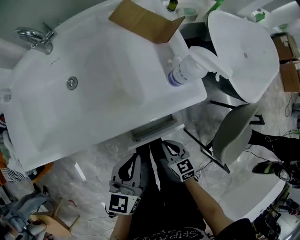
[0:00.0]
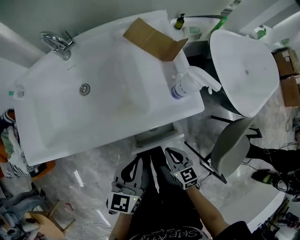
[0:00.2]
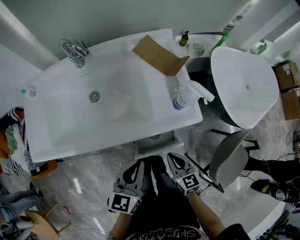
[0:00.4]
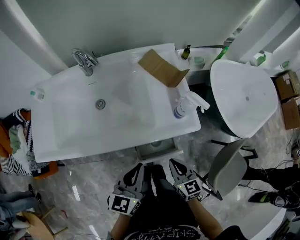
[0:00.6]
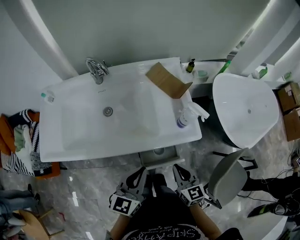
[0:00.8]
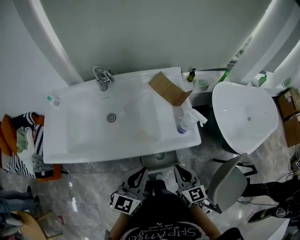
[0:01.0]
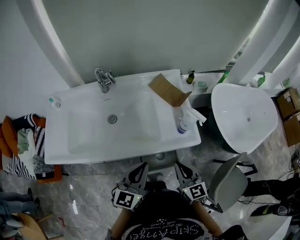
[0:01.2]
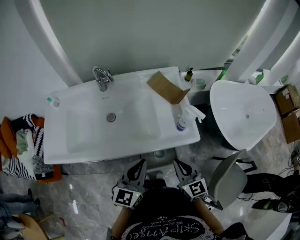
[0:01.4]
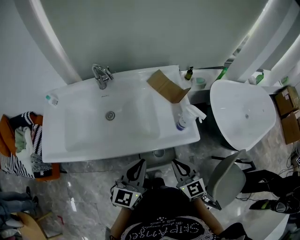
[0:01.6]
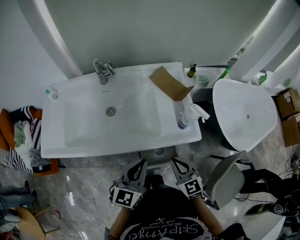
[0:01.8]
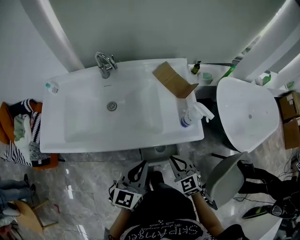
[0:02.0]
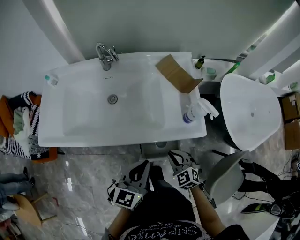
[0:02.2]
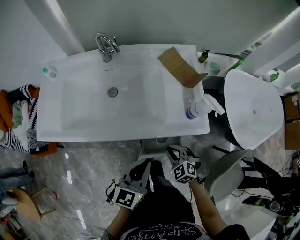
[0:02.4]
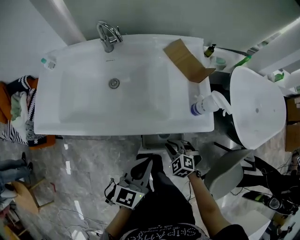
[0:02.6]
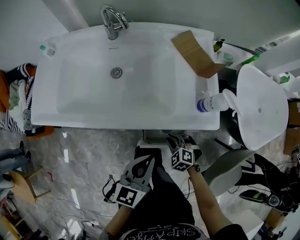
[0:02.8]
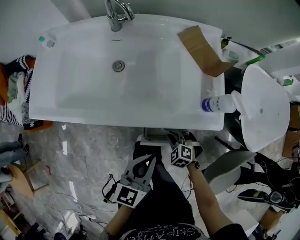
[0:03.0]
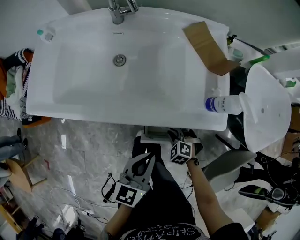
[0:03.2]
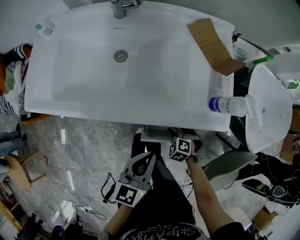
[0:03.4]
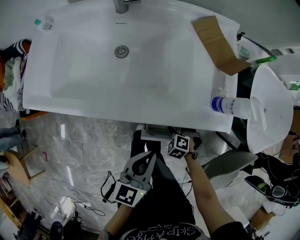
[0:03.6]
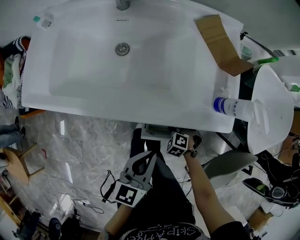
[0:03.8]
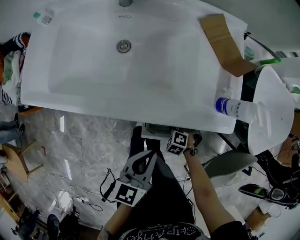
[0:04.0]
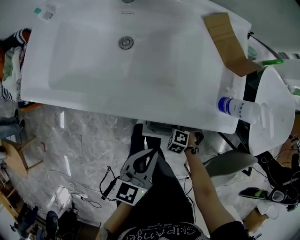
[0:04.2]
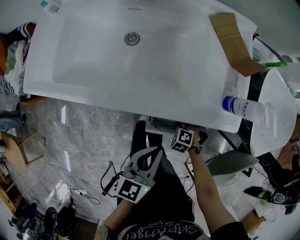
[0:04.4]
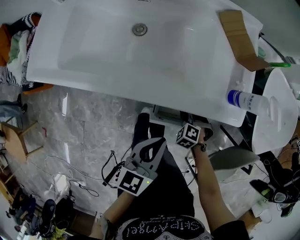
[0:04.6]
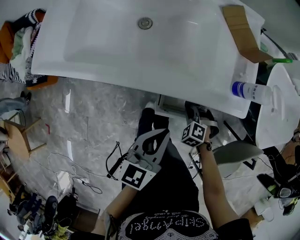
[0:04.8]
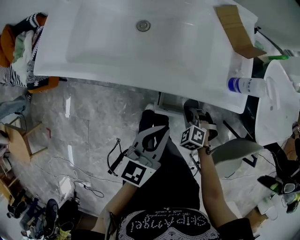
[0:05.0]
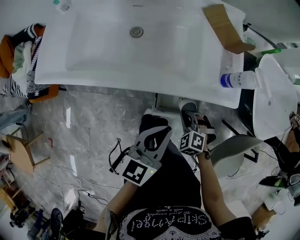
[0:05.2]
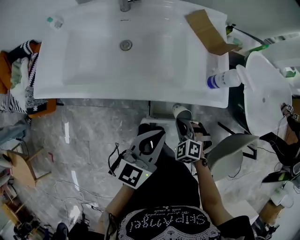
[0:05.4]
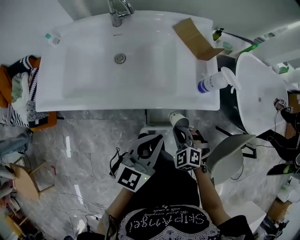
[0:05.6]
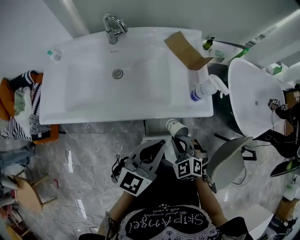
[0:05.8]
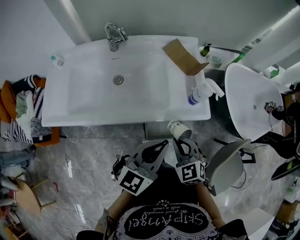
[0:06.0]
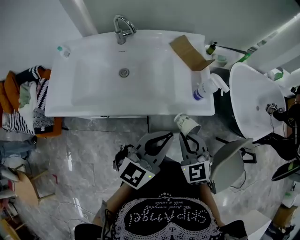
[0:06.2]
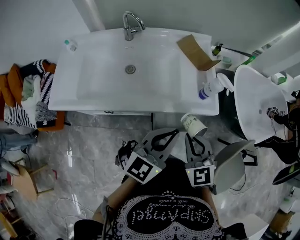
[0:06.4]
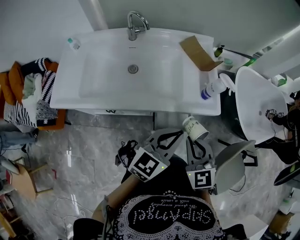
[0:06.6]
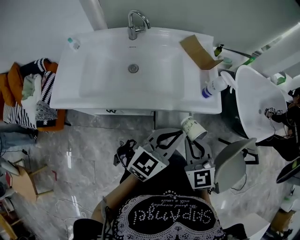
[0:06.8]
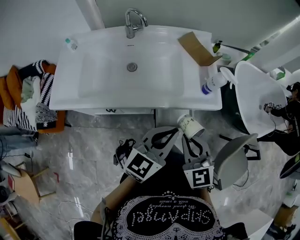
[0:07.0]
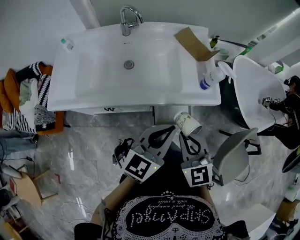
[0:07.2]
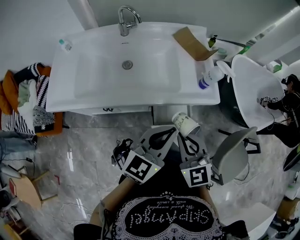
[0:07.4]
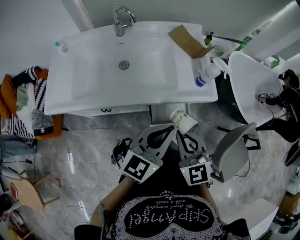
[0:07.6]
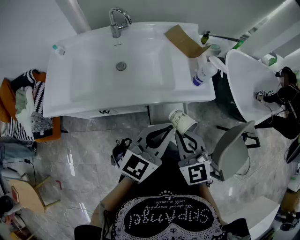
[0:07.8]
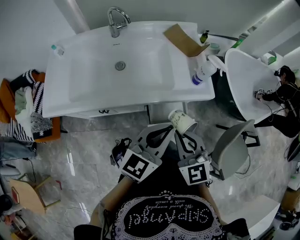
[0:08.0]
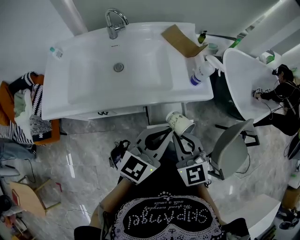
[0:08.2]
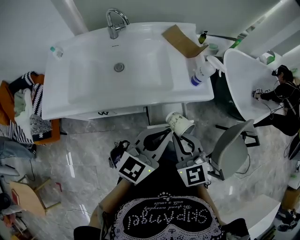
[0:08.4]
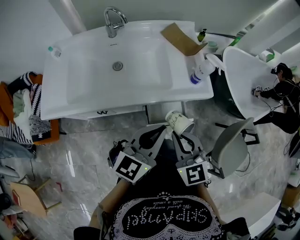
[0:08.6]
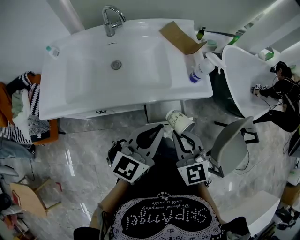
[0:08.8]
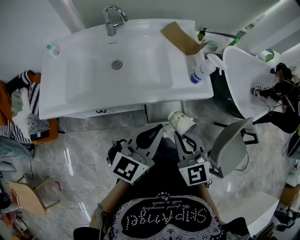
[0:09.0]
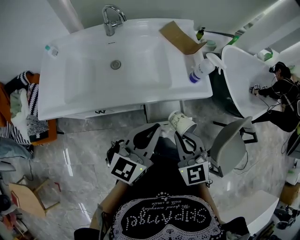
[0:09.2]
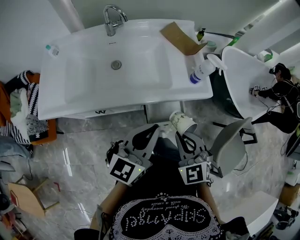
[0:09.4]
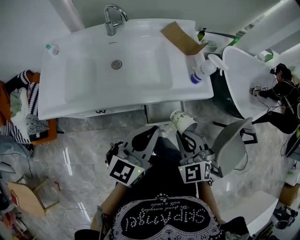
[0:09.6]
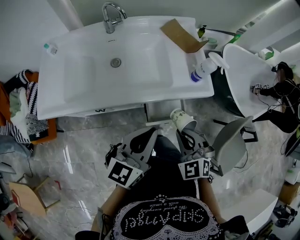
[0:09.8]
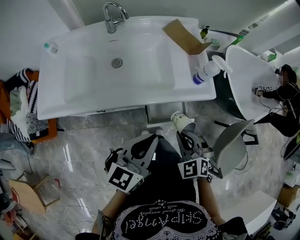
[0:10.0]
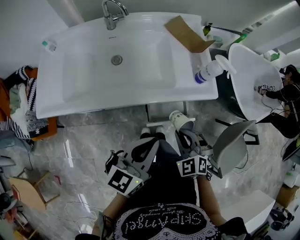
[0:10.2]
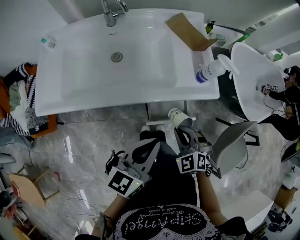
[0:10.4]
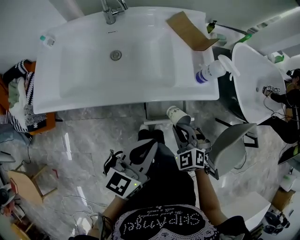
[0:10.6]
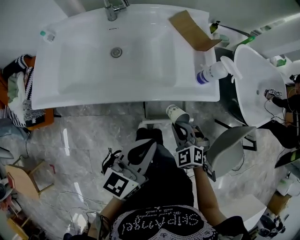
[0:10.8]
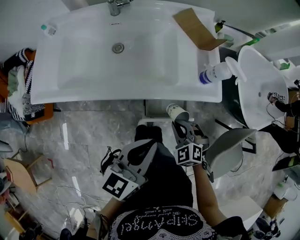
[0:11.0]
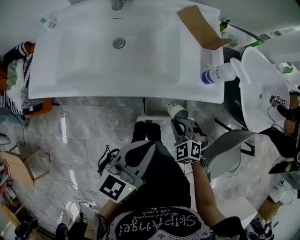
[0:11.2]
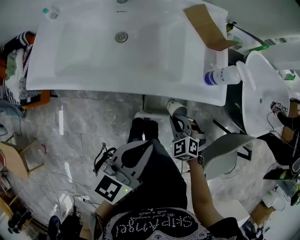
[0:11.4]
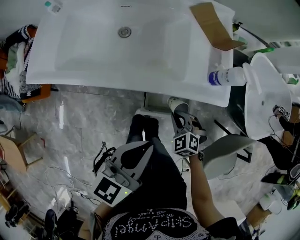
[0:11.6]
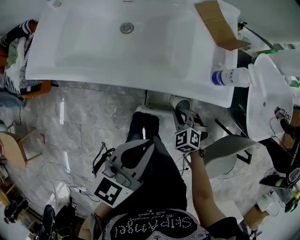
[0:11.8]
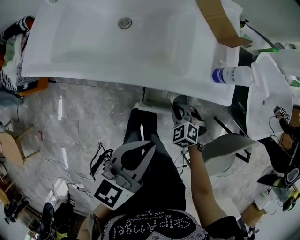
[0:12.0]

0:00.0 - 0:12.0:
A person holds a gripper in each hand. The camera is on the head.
0:00.0 - 0:01.6: The right gripper heads upward, covering some 25 cm, and rotates roughly 30 degrees; the left gripper travels upward by some 10 cm, and swivels about 20 degrees.
0:01.6 - 0:03.0: The left gripper travels downward by approximately 5 cm. The right gripper heads downward, covering roughly 25 cm, and tips its fingers downward by about 50 degrees.
0:03.0 - 0:04.4: The right gripper travels downward by about 10 cm.
0:04.4 - 0:06.0: The left gripper heads upward, covering about 15 cm, and rotates approximately 30 degrees. Meanwhile the right gripper travels upward by some 30 cm, and tilts its fingers some 40 degrees upward.
0:06.0 - 0:07.6: The right gripper travels upward and backward by roughly 10 cm.
0:07.6 - 0:09.0: There are only small adjustments of the grippers.
0:09.0 - 0:10.4: The right gripper heads downward, covering roughly 10 cm, and turns by approximately 30 degrees.
0:10.4 - 0:12.0: The right gripper is displaced downward by approximately 15 cm.

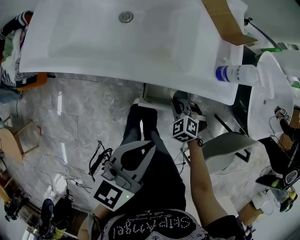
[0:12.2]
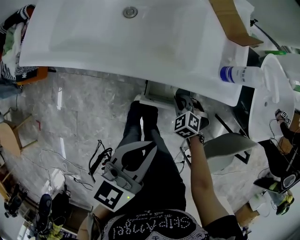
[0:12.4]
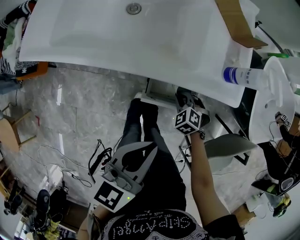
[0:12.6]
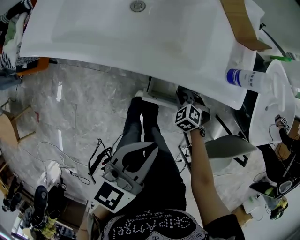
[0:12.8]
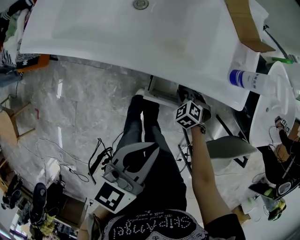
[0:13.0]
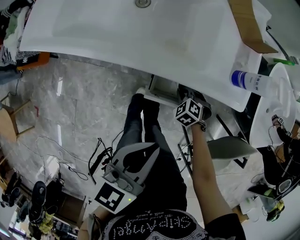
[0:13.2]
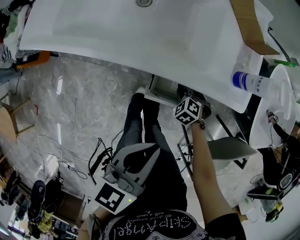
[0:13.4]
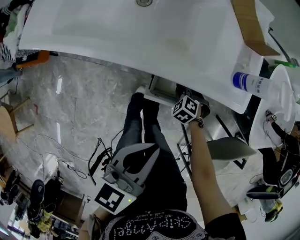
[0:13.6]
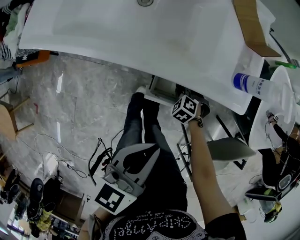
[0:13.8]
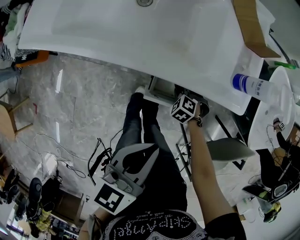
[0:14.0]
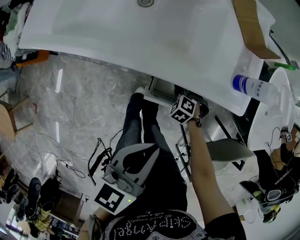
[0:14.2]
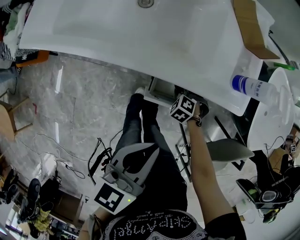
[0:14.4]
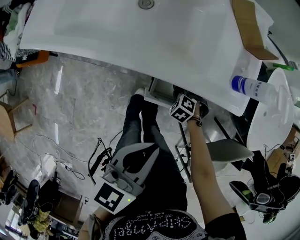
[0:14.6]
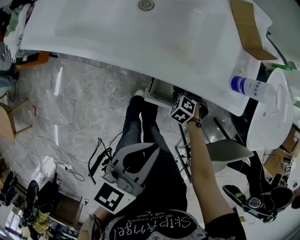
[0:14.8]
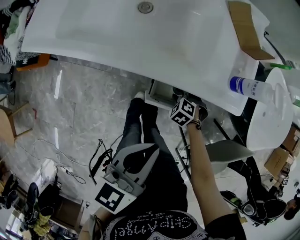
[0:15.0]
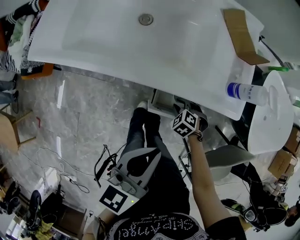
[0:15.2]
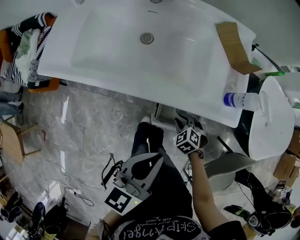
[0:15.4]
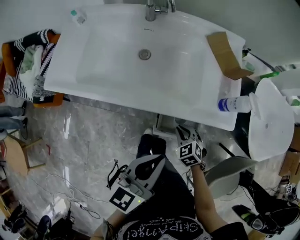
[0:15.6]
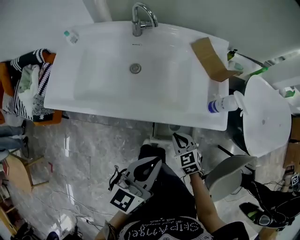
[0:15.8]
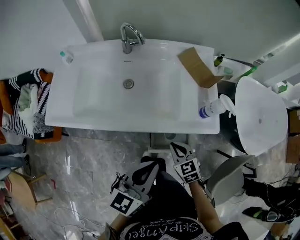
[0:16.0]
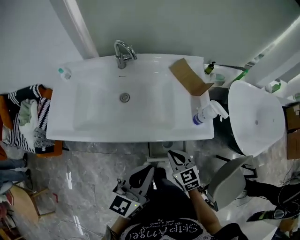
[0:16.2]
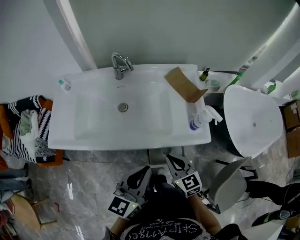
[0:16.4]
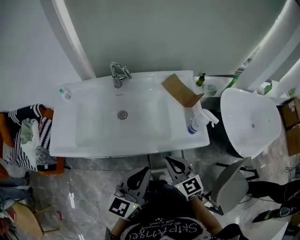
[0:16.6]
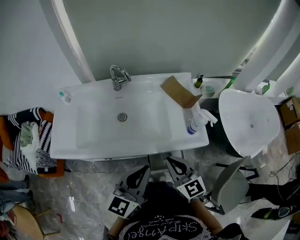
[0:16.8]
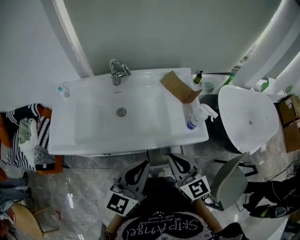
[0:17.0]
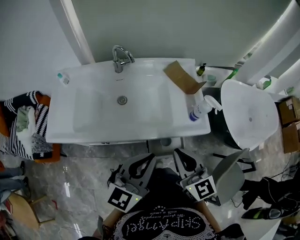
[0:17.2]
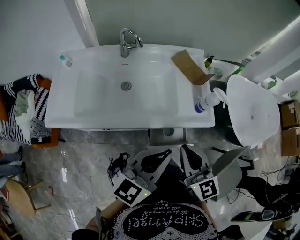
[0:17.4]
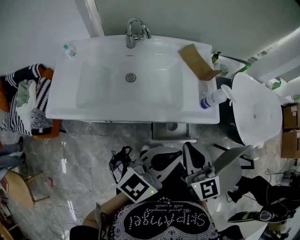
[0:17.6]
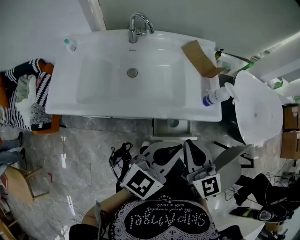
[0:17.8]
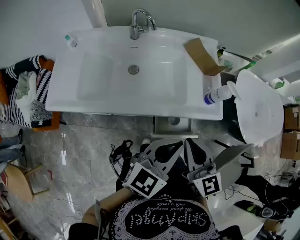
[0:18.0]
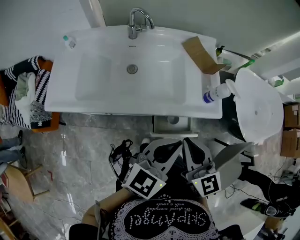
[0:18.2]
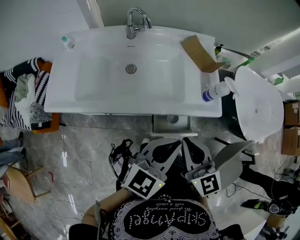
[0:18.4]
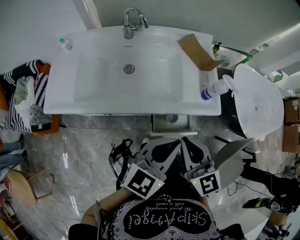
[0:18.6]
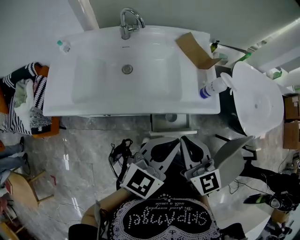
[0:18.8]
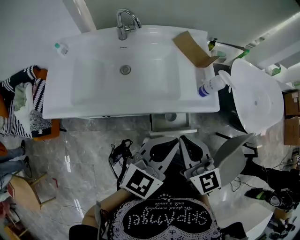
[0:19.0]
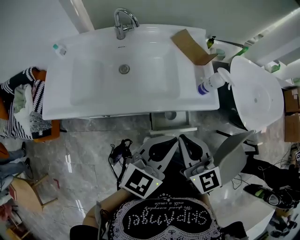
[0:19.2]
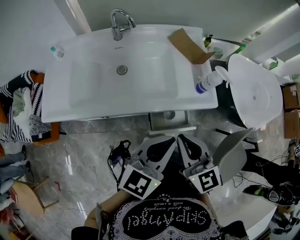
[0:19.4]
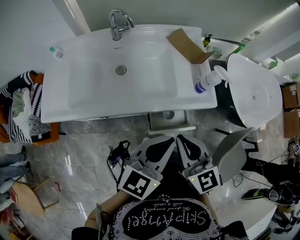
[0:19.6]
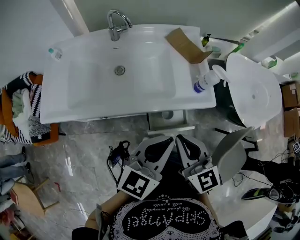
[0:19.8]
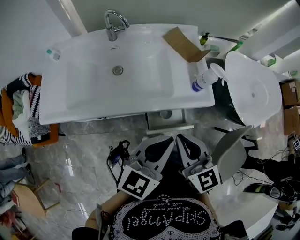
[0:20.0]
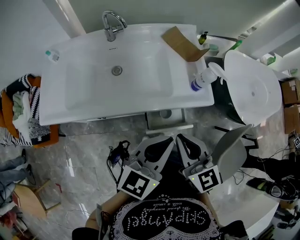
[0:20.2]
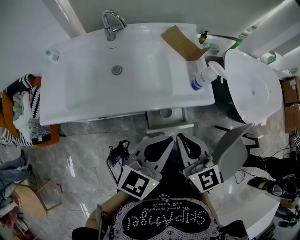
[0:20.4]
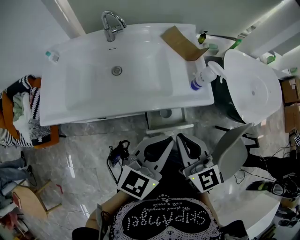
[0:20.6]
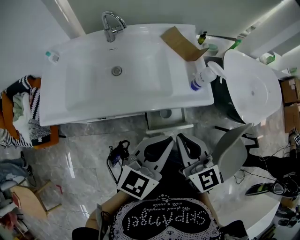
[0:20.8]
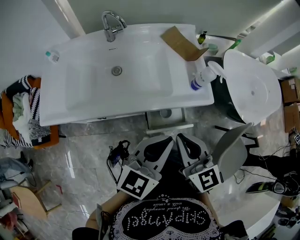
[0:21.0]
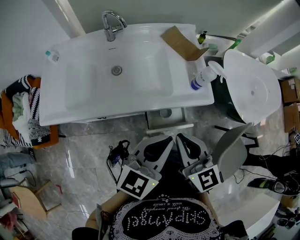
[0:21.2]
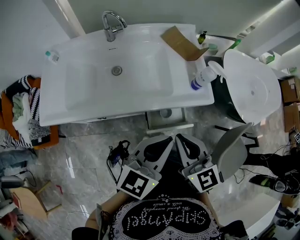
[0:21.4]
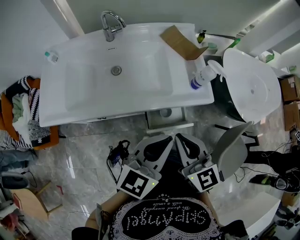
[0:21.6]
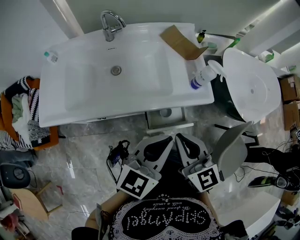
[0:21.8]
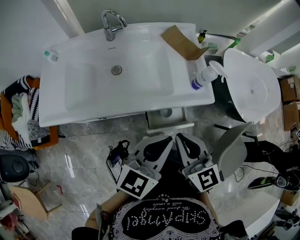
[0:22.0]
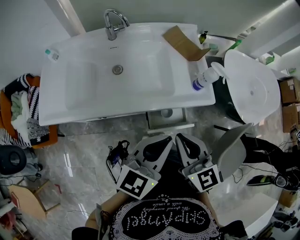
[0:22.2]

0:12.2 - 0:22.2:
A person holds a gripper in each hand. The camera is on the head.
0:12.2 - 0:13.6: The right gripper goes approximately 10 cm downward.
0:13.6 - 0:15.0: There are only small adjustments of the grippers.
0:15.0 - 0:16.4: The left gripper goes some 10 cm upward, and changes its angle by approximately 20 degrees. The right gripper shifts roughly 30 cm upward, and points its fingers about 50 degrees further upward.
0:16.4 - 0:18.0: The right gripper is displaced upward by about 10 cm. The left gripper changes its angle by approximately 20 degrees.
0:18.0 - 0:19.4: Both grippers stay about where they are.
0:19.4 - 0:22.2: The grippers move only a little.

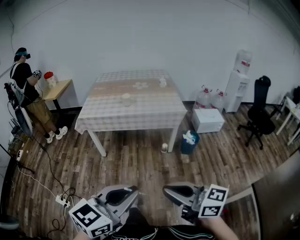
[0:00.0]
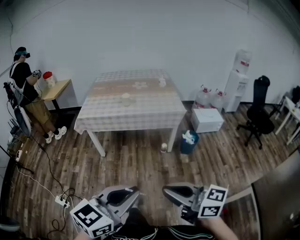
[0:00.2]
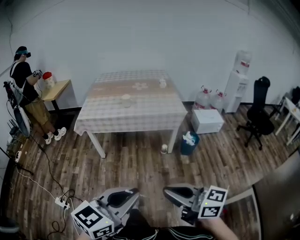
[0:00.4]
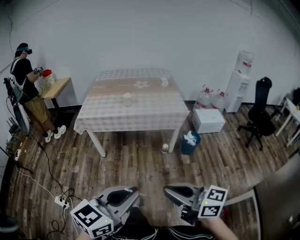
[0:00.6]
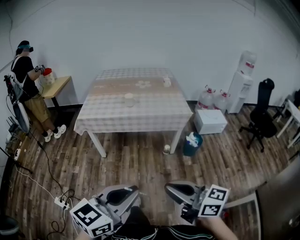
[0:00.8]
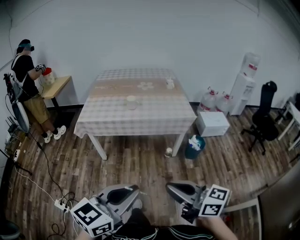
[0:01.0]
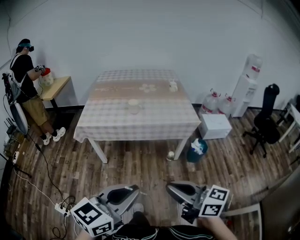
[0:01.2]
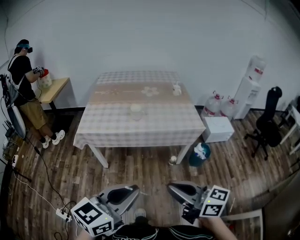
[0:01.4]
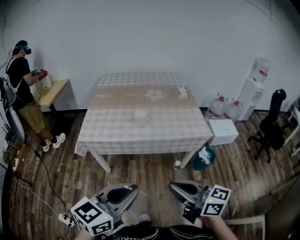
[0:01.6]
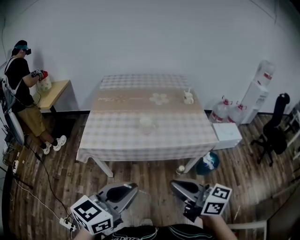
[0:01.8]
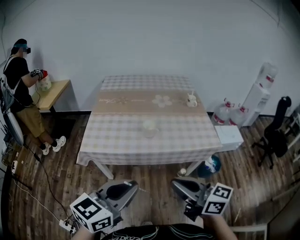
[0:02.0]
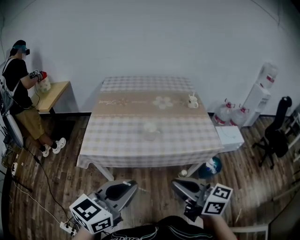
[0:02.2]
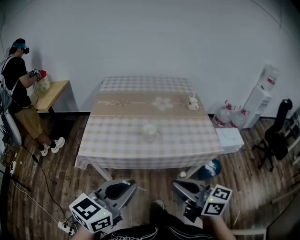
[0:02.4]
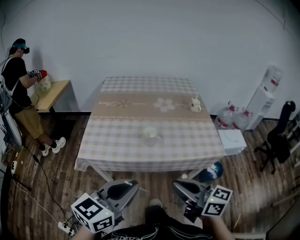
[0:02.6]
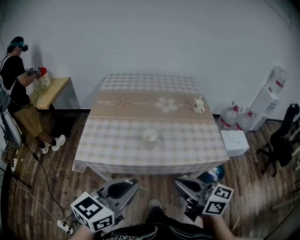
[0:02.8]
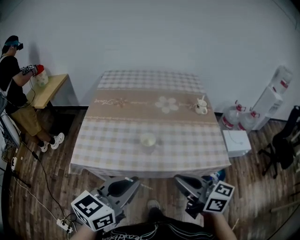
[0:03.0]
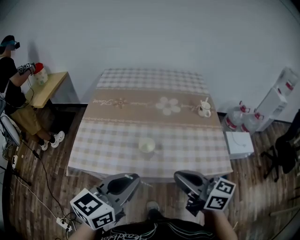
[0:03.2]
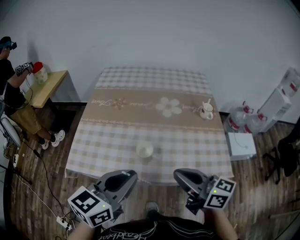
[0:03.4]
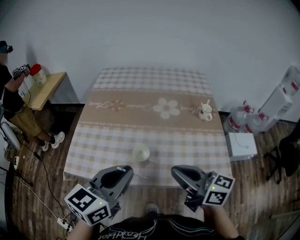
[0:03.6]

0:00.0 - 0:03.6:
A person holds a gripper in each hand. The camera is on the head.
0:00.0 - 0:01.8: Both grippers move forward, about 35 cm.
0:01.8 - 0:03.6: The grippers both shift forward by about 30 cm.
